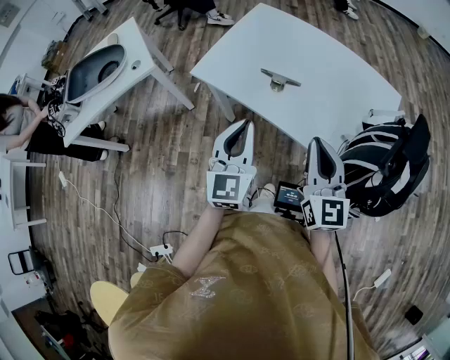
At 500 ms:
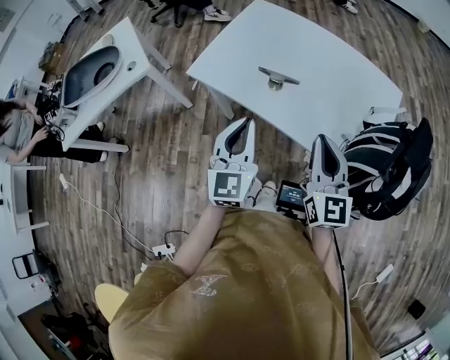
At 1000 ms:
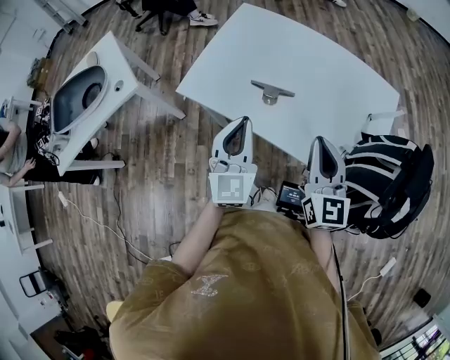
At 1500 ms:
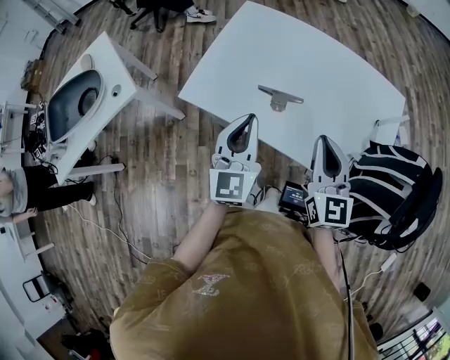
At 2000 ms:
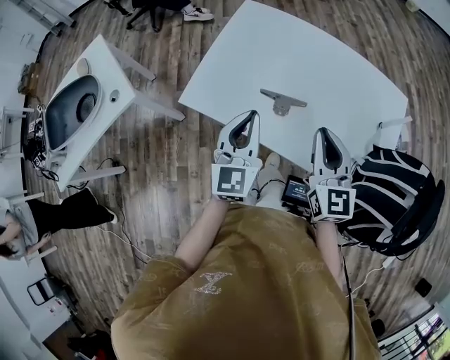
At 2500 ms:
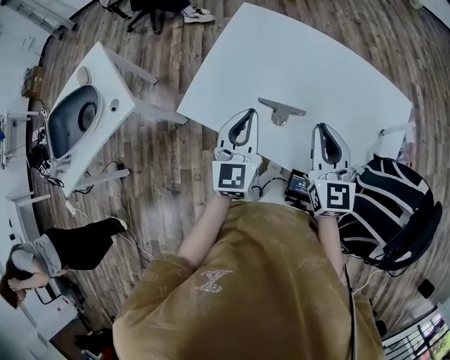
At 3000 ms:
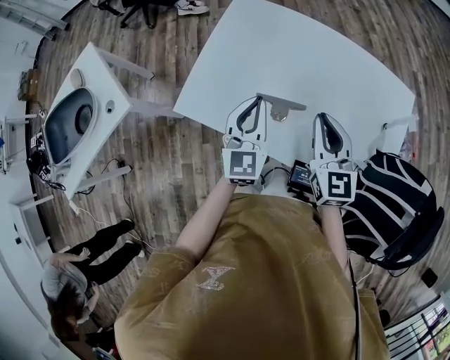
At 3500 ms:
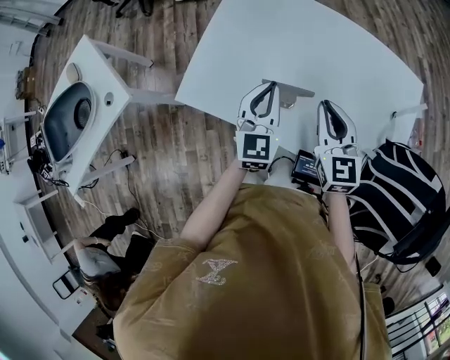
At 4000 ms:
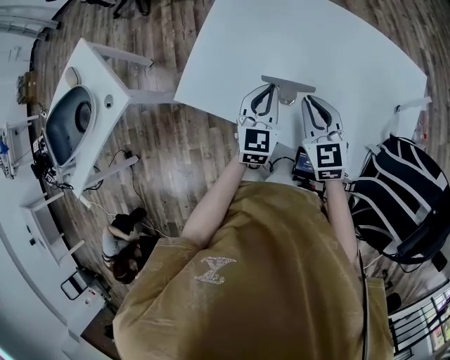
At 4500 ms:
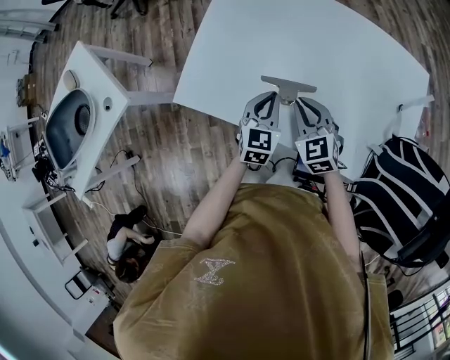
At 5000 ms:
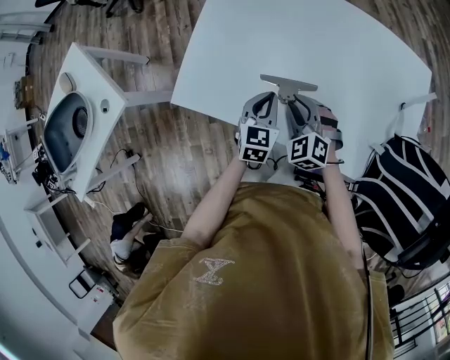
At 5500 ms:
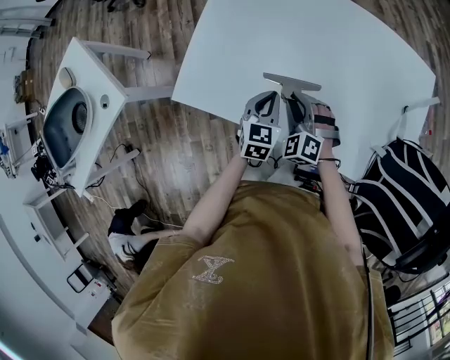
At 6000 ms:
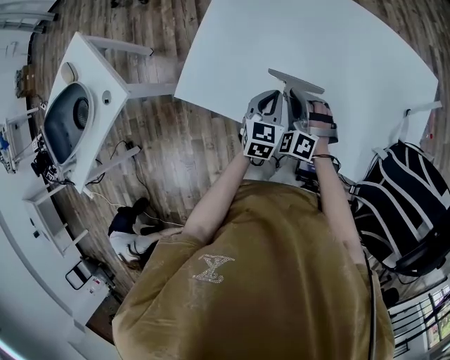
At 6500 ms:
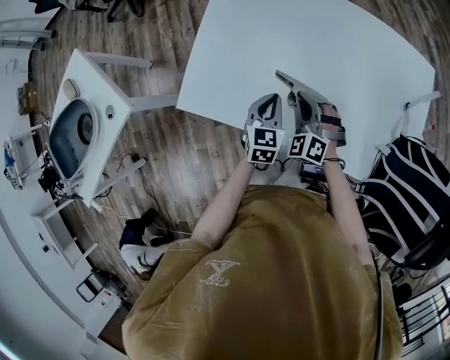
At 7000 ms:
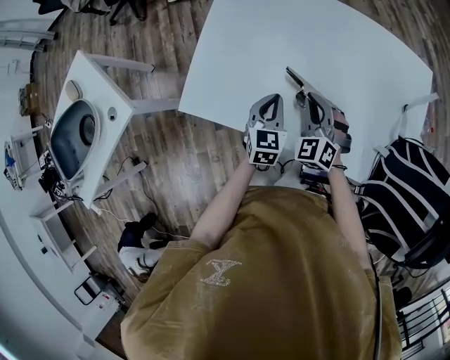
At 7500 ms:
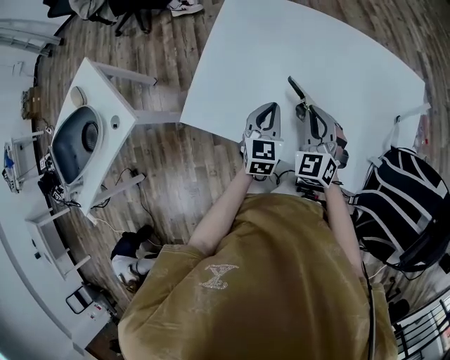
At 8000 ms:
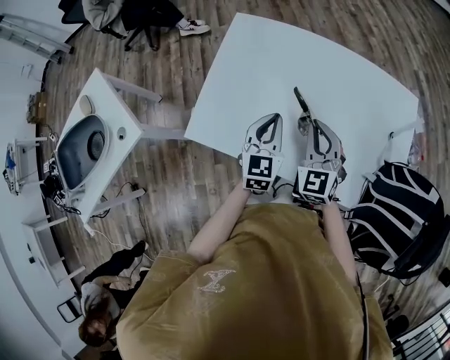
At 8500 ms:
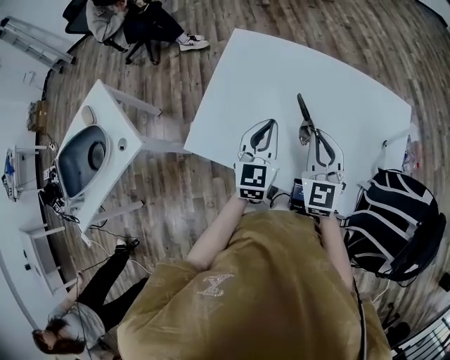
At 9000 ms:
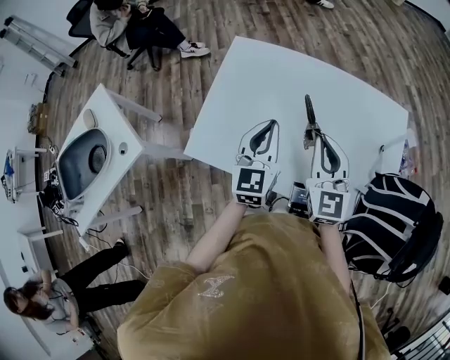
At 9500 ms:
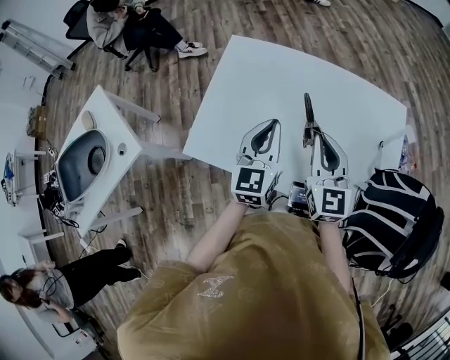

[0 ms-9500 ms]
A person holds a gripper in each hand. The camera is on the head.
0 ms to 2000 ms: Both grippers travel together forward, approximately 20 cm.
2000 ms to 4000 ms: Both grippers travel together downward and forward, some 15 cm. The right gripper rotates some 20 degrees.
4000 ms to 5500 ms: Both grippers move downward, about 10 cm. The right gripper changes its angle by about 40 degrees.
5500 ms to 7500 ms: The left gripper goes about 5 cm upward; the right gripper goes some 10 cm upward, and swivels roughly 30 degrees.
7500 ms to 9500 ms: The grippers both shift upward by about 15 cm. The left gripper changes its angle by approximately 20 degrees; the right gripper changes its angle by some 40 degrees.

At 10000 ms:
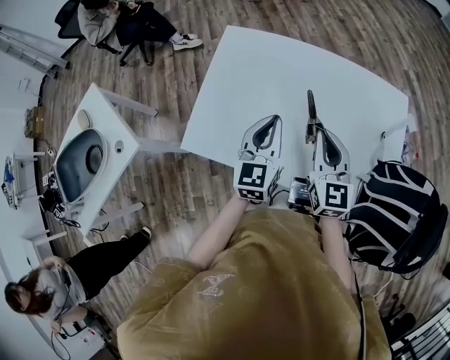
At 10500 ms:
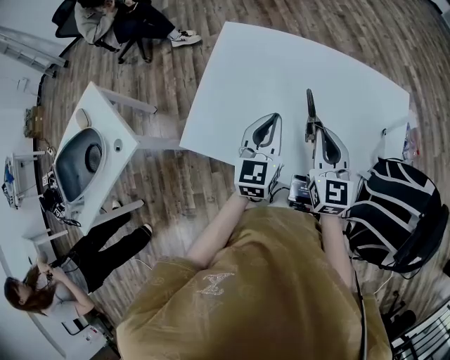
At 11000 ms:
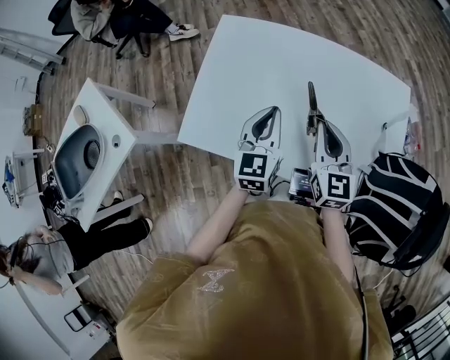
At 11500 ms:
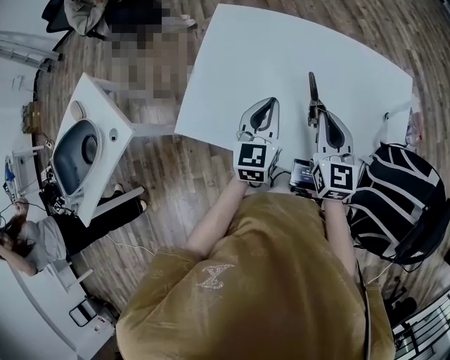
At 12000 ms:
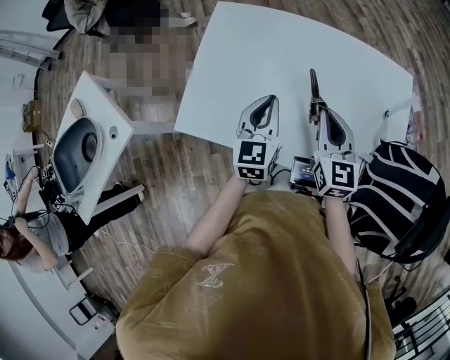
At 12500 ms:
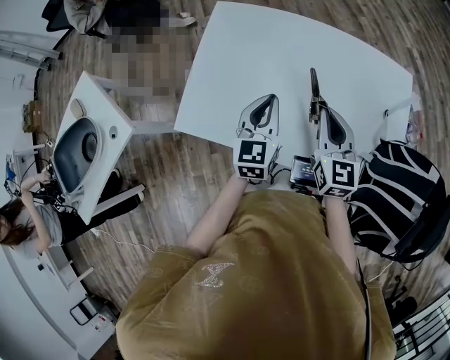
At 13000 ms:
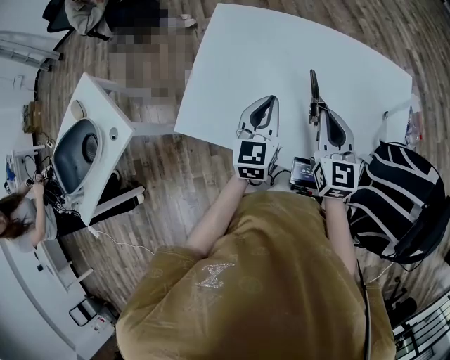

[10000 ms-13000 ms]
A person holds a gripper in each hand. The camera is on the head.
10000 ms to 11500 ms: The grippers move only a little.
11500 ms to 13000 ms: Both grippers stay about where they are.

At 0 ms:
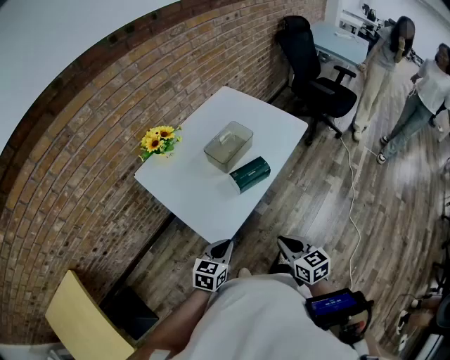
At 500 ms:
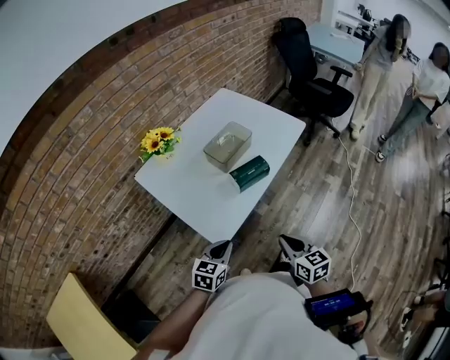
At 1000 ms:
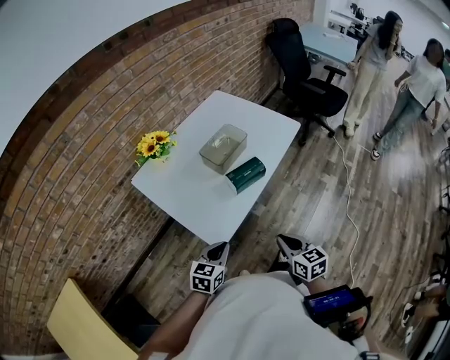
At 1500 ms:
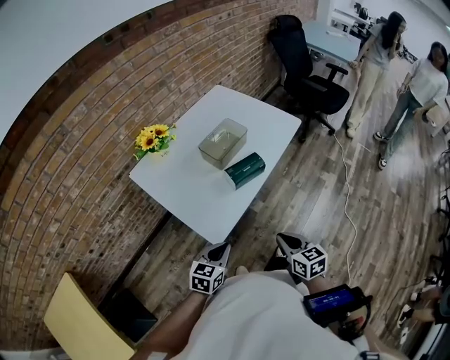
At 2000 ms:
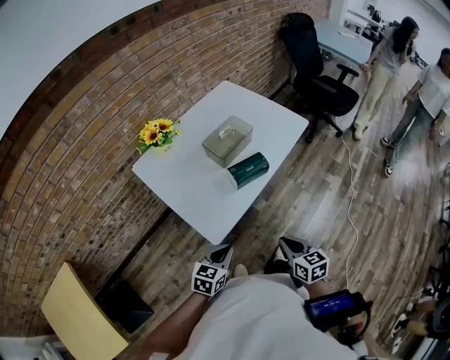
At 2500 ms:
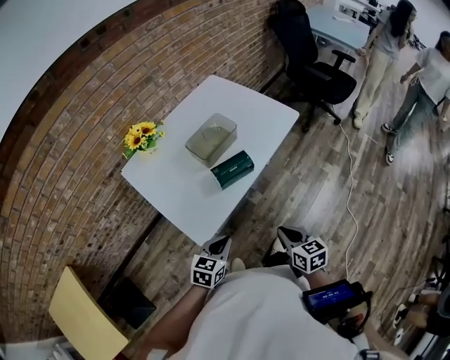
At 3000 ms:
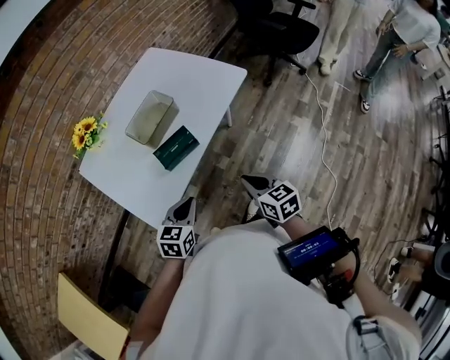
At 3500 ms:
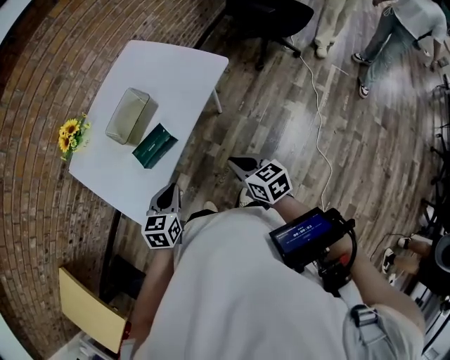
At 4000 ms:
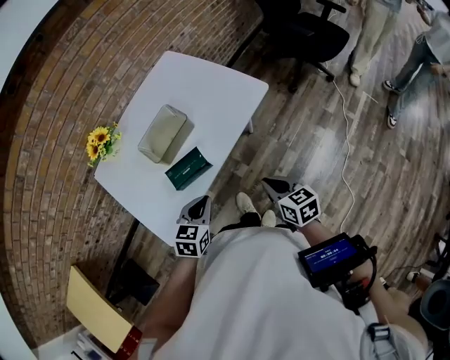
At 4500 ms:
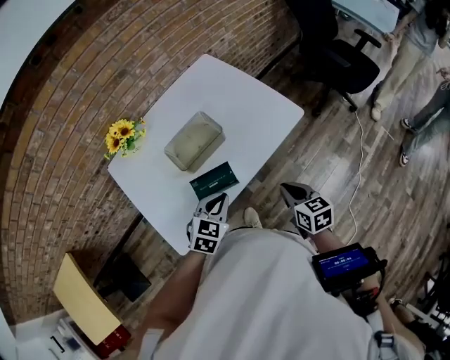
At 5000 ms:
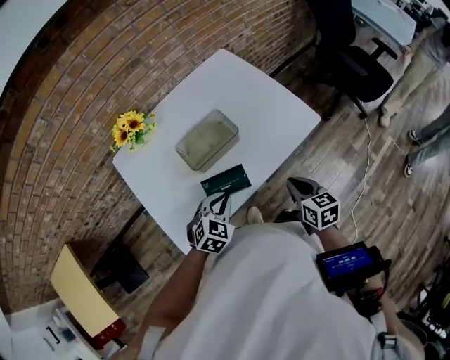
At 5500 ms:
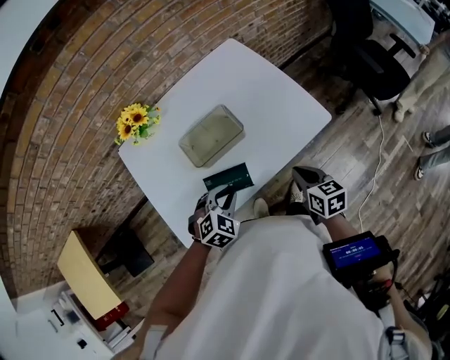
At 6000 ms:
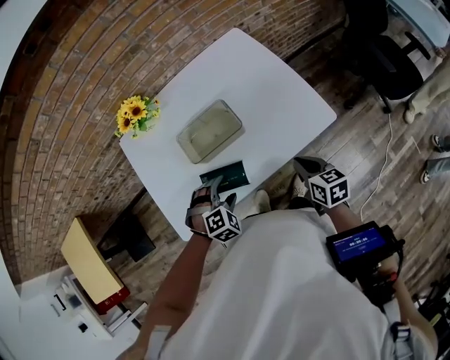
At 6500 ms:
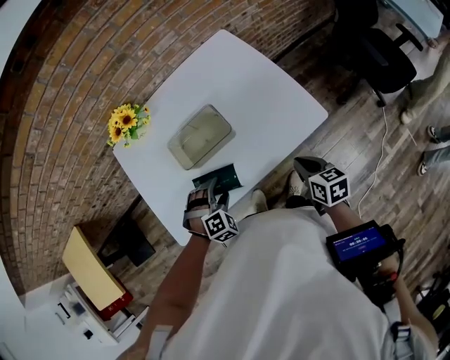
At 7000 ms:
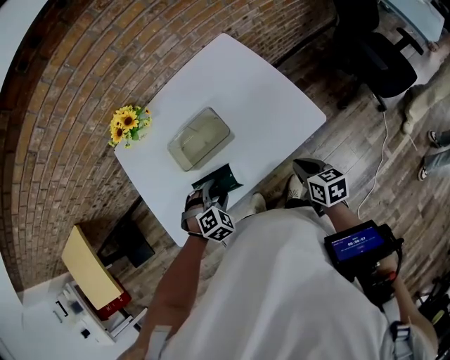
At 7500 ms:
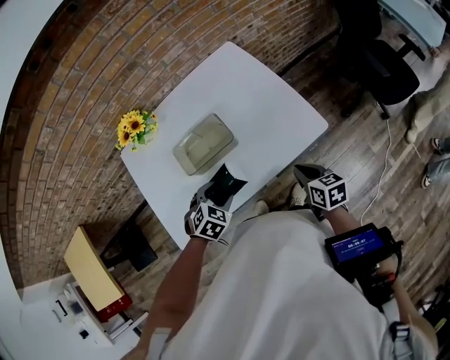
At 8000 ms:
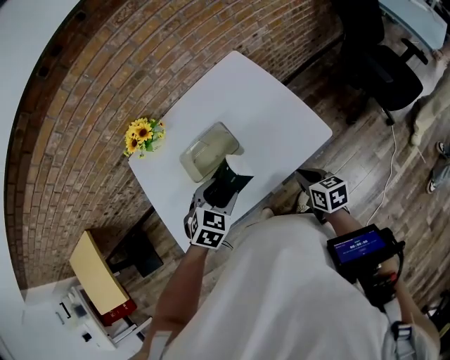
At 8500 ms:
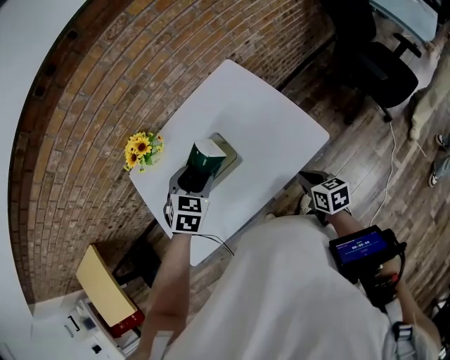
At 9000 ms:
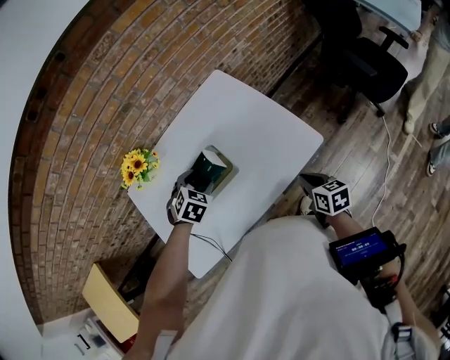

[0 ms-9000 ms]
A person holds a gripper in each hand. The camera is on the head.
0 ms to 2000 ms: There are only small adjustments of the grippers.
2000 ms to 4500 ms: Both grippers move forward and to the right, roughly 30 cm.
4500 ms to 7000 ms: The left gripper travels downward by approximately 5 cm, swivels approximately 40 degrees, and opens up, while the right gripper moves about 15 cm.
7000 ms to 9000 ms: The left gripper travels forward and upward by approximately 20 cm.

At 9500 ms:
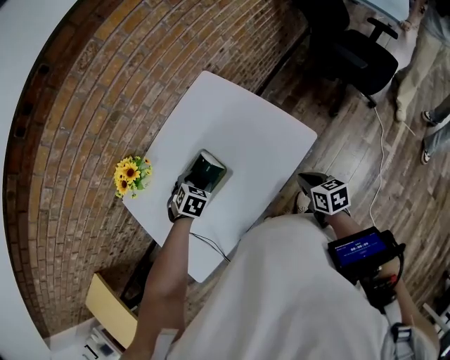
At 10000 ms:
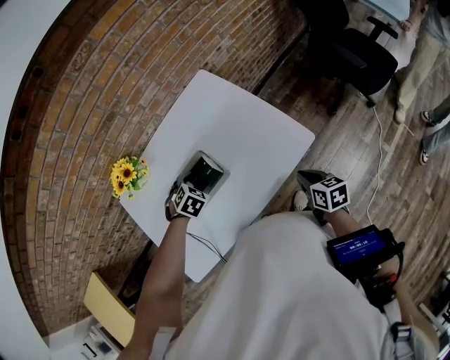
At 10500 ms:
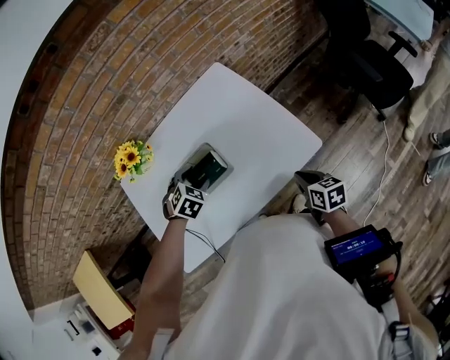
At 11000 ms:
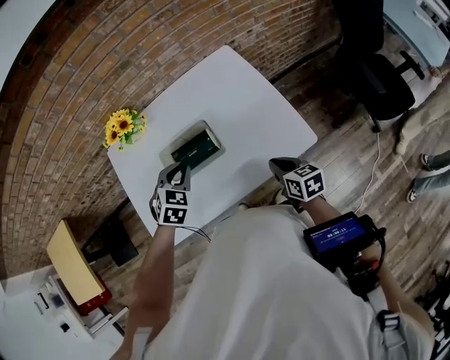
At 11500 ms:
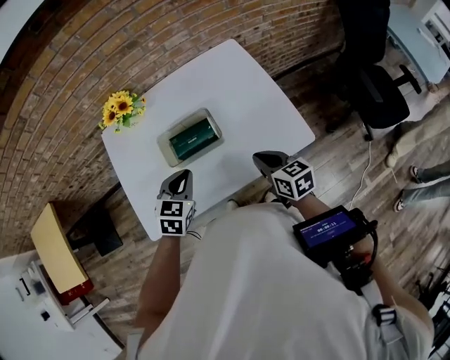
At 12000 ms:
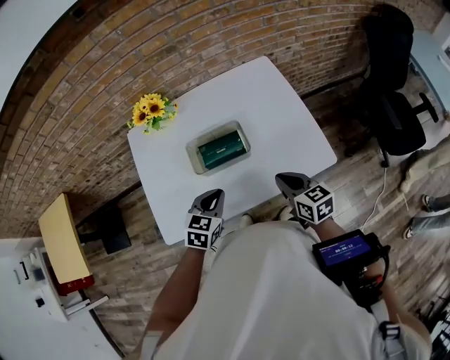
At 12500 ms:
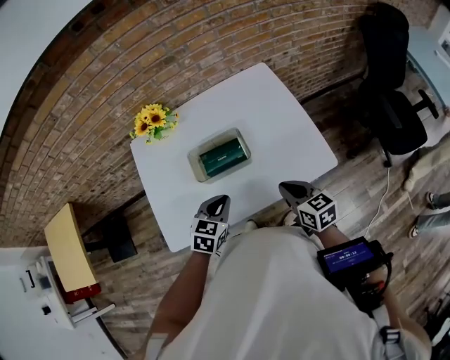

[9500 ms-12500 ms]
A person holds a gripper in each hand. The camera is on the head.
9500 ms to 11000 ms: The right gripper travels forward and to the left by roughly 10 cm, while the left gripper is displaced upward and backward by approximately 10 cm, rotates about 20 degrees, and closes.
11000 ms to 12500 ms: The left gripper shifts some 10 cm backward, and rotates about 30 degrees, while the right gripper goes approximately 5 cm to the left.

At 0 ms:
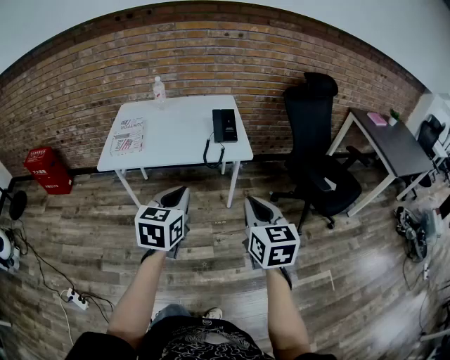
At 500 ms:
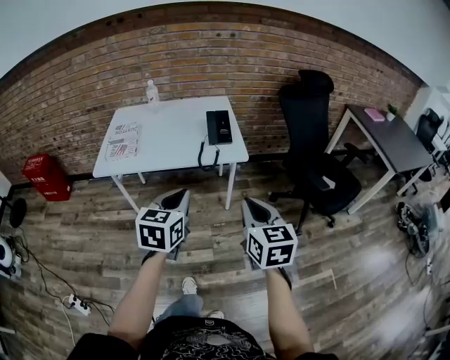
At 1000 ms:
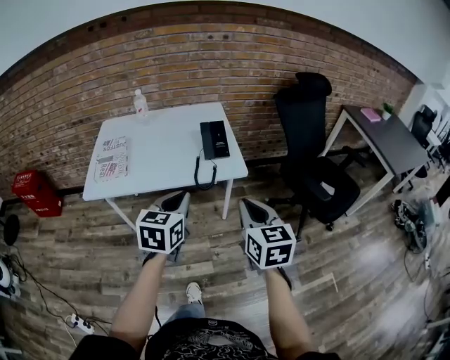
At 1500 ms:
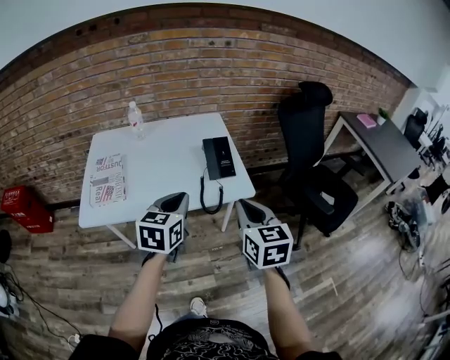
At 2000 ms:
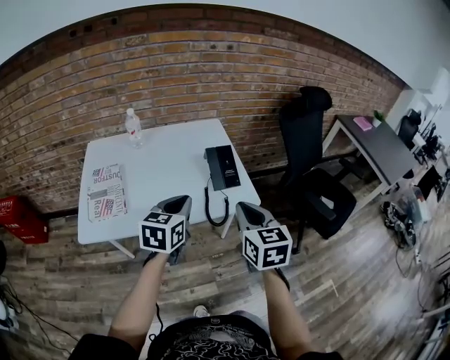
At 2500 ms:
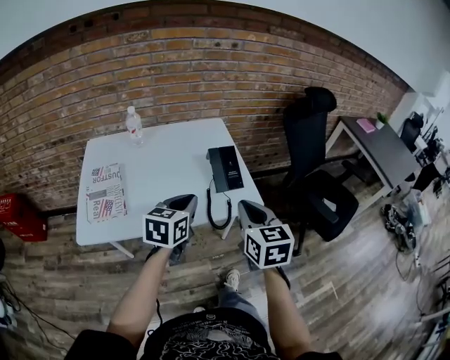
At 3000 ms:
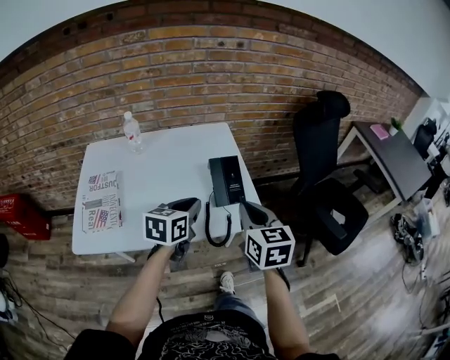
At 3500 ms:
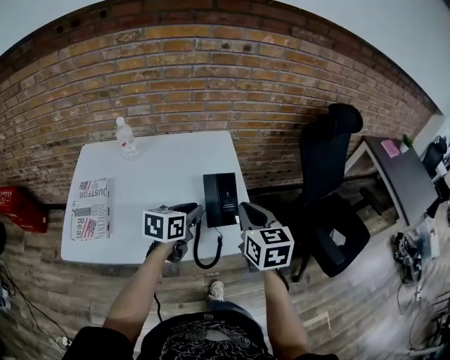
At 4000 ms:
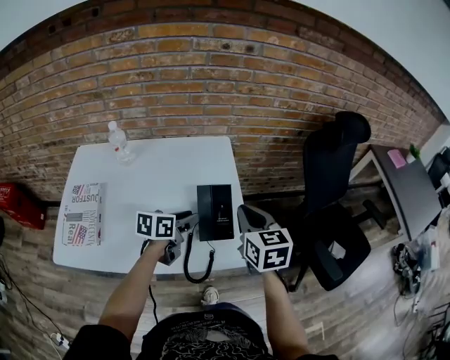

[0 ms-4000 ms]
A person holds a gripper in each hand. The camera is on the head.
0 ms to 2000 ms: The right gripper heads forward and to the left, covering approximately 30 cm. The left gripper moves forward, roughly 30 cm.
2000 ms to 4000 ms: The right gripper moves forward, about 25 cm, while the left gripper moves forward and downward, about 25 cm, rotates some 30 degrees, and opens up.
